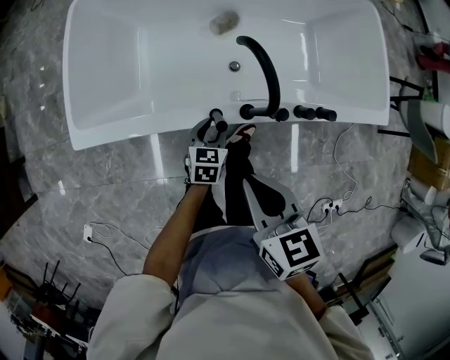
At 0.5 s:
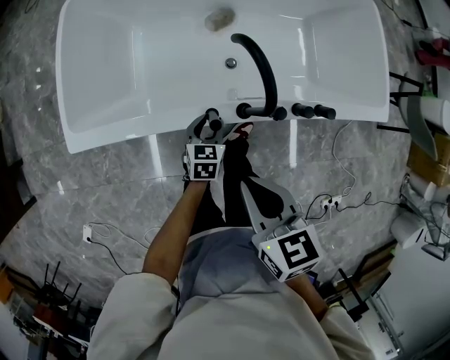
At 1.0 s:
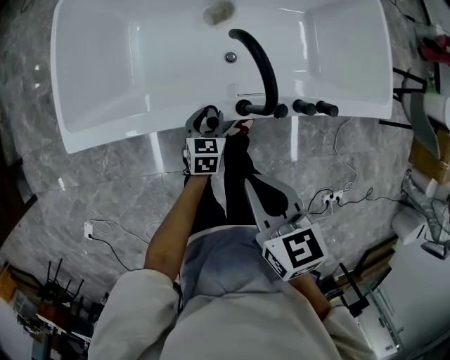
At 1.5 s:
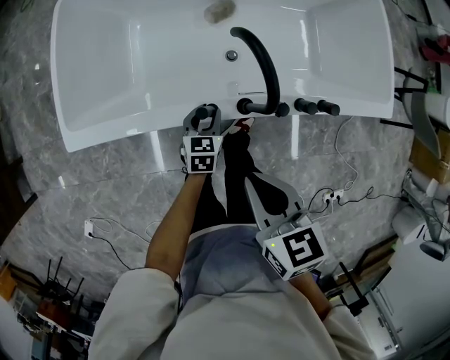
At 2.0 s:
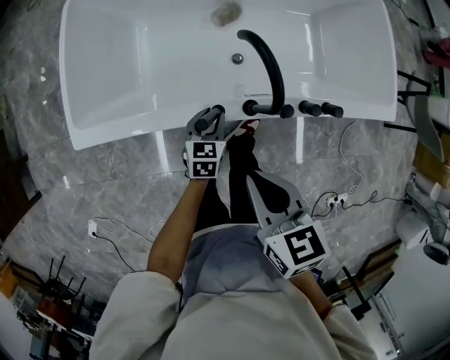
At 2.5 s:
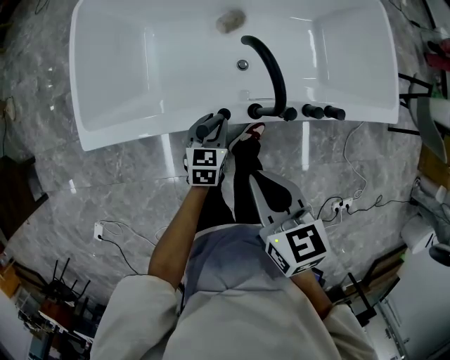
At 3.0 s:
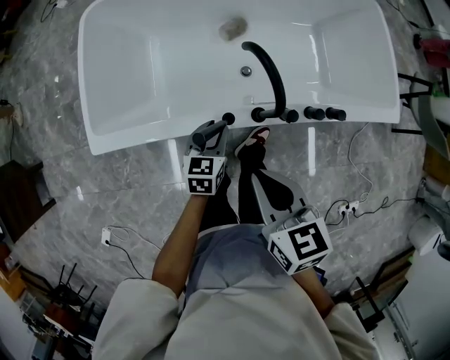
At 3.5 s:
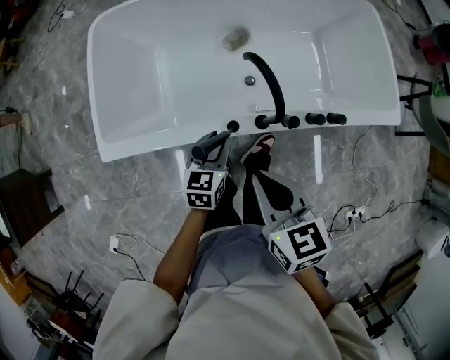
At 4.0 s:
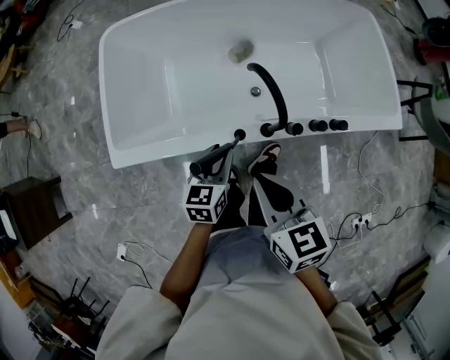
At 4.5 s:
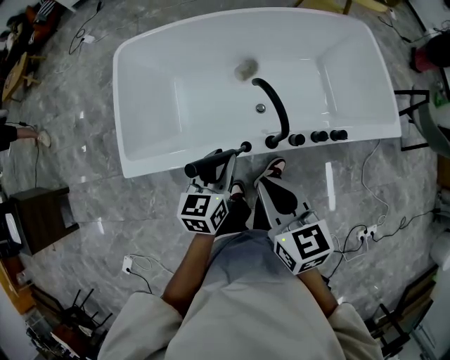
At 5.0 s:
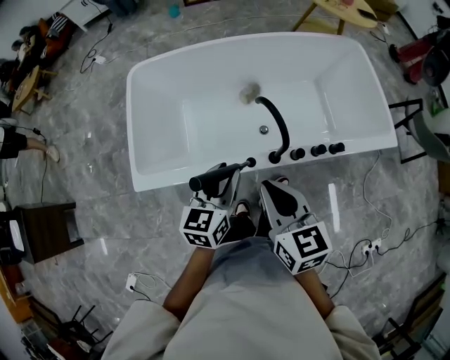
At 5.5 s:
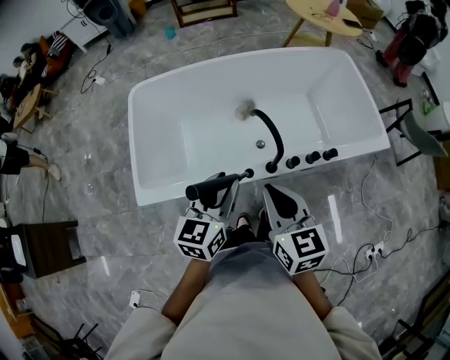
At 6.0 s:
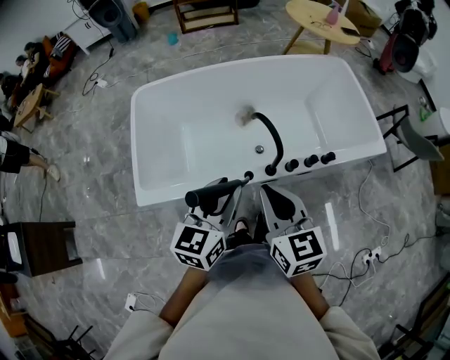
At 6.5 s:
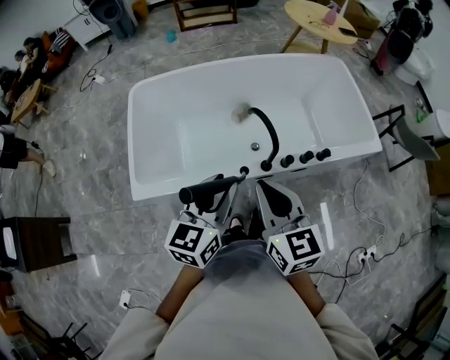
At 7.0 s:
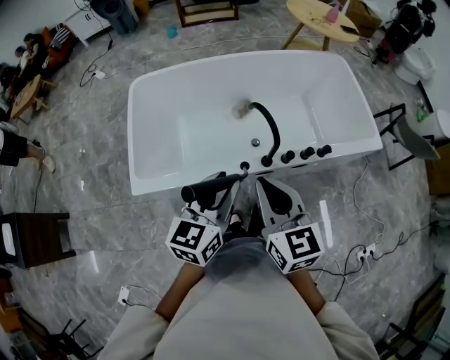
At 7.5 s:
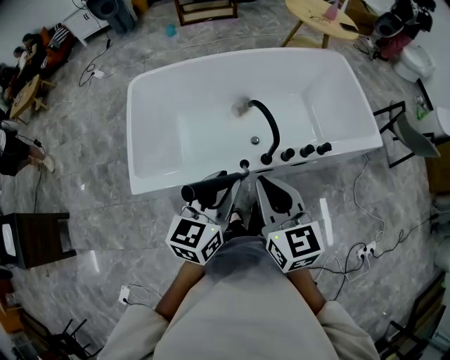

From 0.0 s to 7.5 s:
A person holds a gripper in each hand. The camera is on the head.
From 0.0 s to 2.0 s: The grippers move only a little.
From 2.0 s to 4.0 s: The right gripper is displaced upward by some 5 cm. The left gripper goes some 15 cm upward.
From 4.0 s to 5.5 s: The right gripper travels upward by some 10 cm. The left gripper is displaced upward by approximately 20 cm.
From 5.5 s to 7.5 s: The left gripper is displaced backward by about 5 cm; the right gripper shifts by some 5 cm.

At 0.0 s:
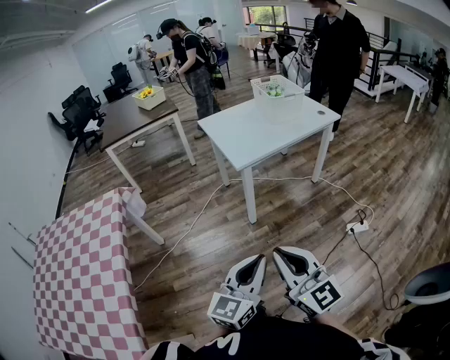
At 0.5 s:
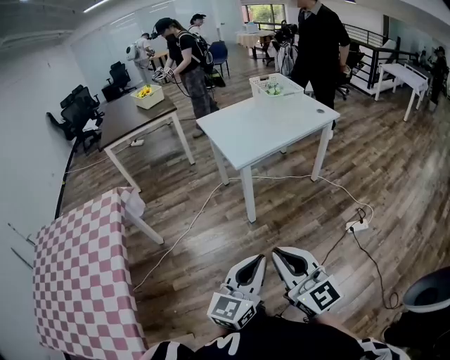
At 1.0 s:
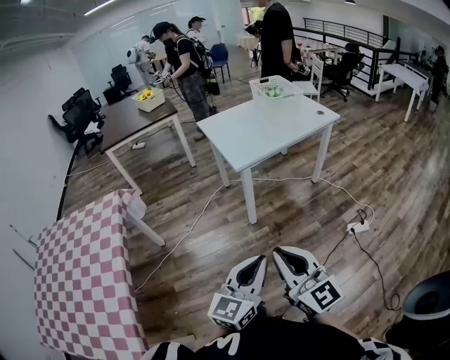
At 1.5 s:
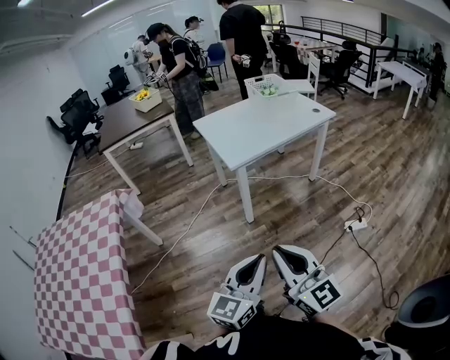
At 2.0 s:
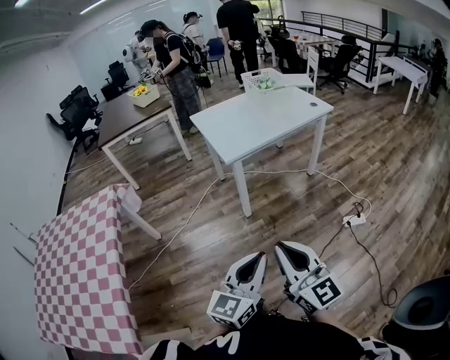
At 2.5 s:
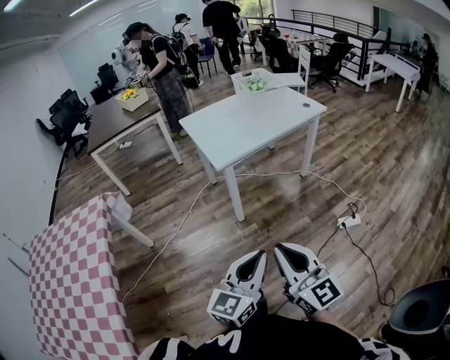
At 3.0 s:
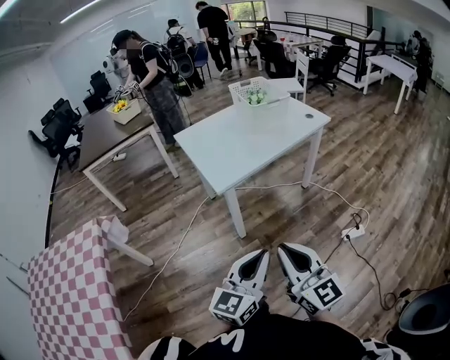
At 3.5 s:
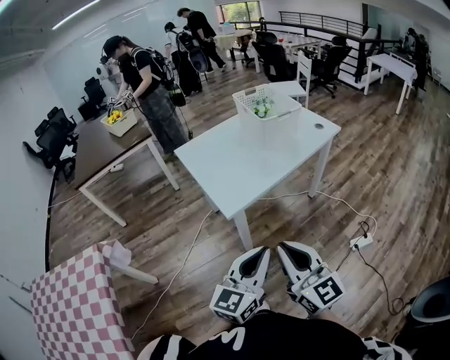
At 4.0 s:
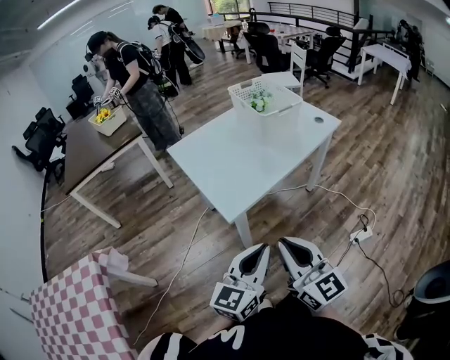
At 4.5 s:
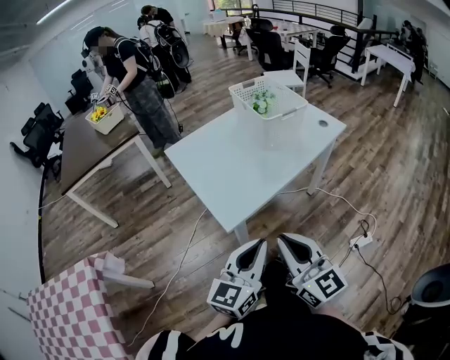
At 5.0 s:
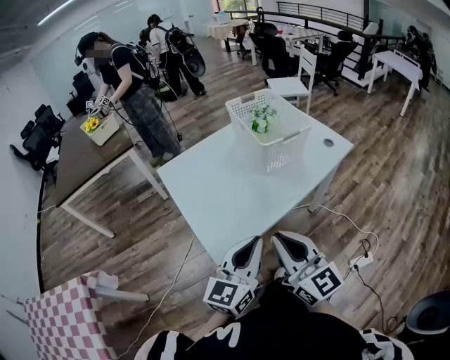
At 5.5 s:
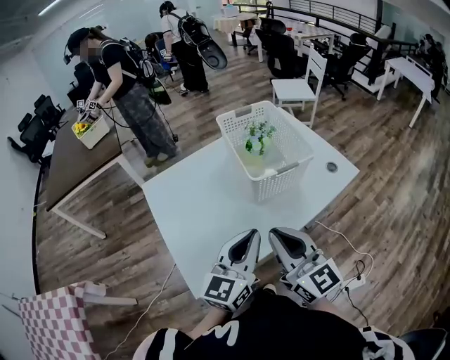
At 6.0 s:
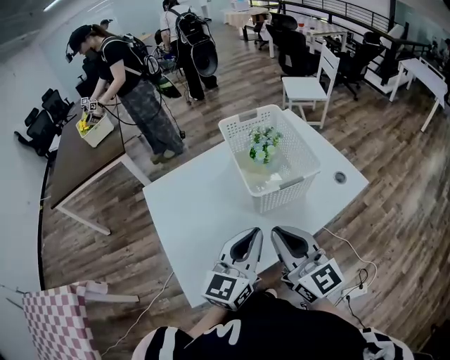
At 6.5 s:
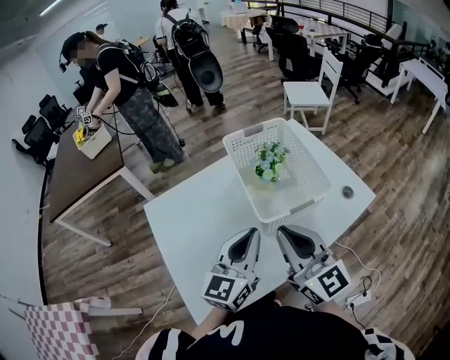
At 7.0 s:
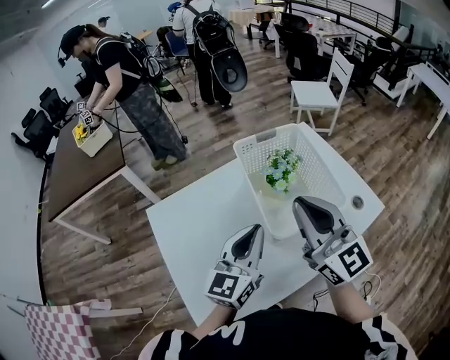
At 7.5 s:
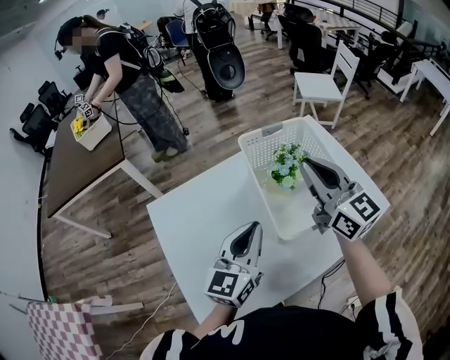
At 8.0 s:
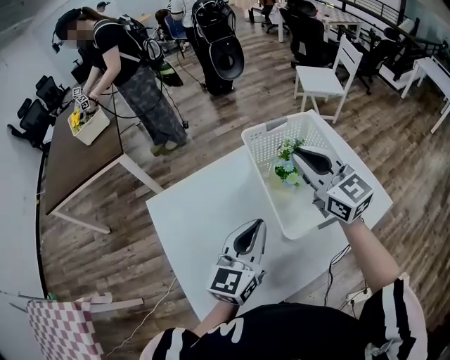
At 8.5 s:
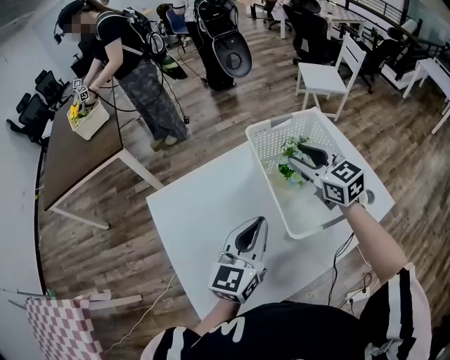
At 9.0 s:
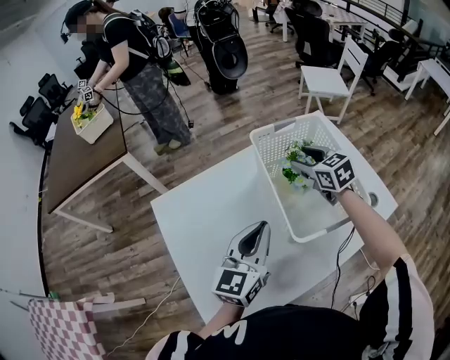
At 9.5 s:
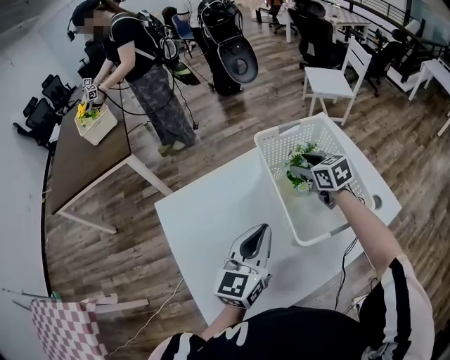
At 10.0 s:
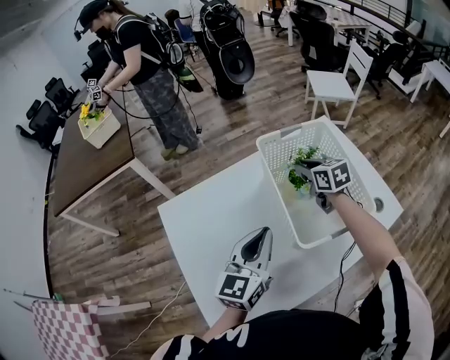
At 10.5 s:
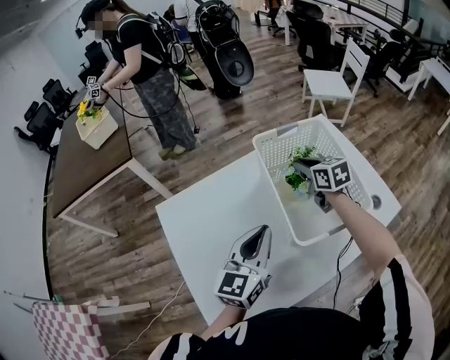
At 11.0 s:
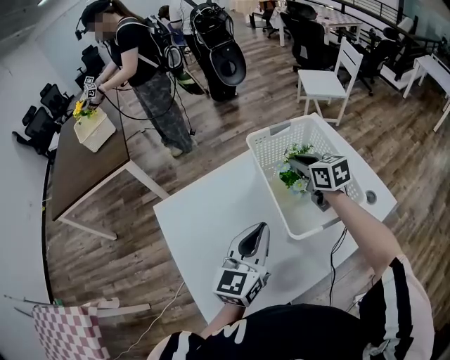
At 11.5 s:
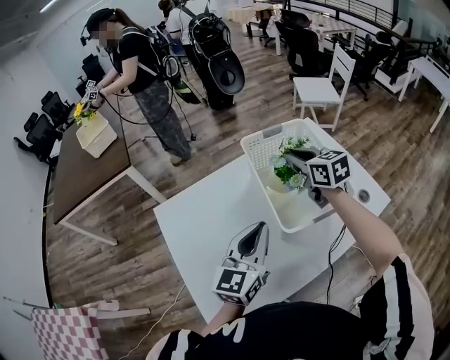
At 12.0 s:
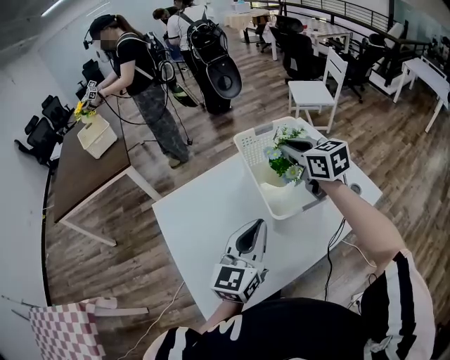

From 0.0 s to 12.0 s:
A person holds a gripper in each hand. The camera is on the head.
From 0.0 s to 2.0 s: Both grippers move to the right, roughly 5 cm.
From 2.0 s to 4.0 s: Both grippers move forward, roughly 35 cm.
From 4.0 s to 6.0 s: The two grippers travel together, forward, about 40 cm.
From 6.0 s to 8.0 s: The left gripper heads forward, covering some 15 cm; the right gripper travels forward by approximately 30 cm.
From 8.0 s to 10.0 s: The right gripper is displaced downward and forward by some 20 cm, tilts its fingers approximately 30 degrees downward, and opens, then closes again.
From 10.0 s to 12.0 s: The right gripper travels upward and backward by about 20 cm. Meanwhile the left gripper is displaced backward by some 5 cm.

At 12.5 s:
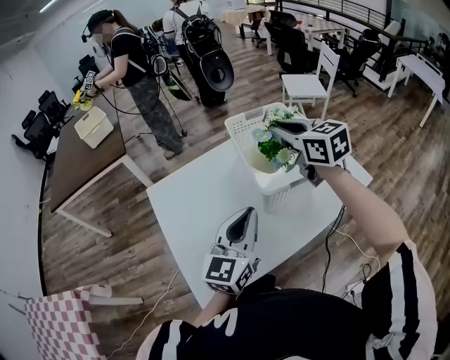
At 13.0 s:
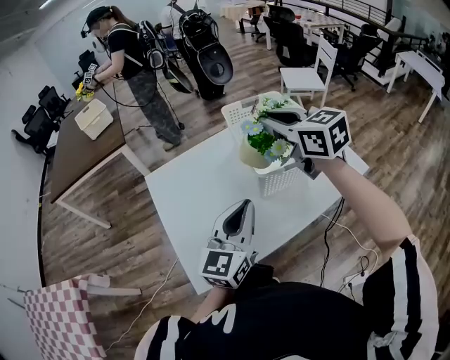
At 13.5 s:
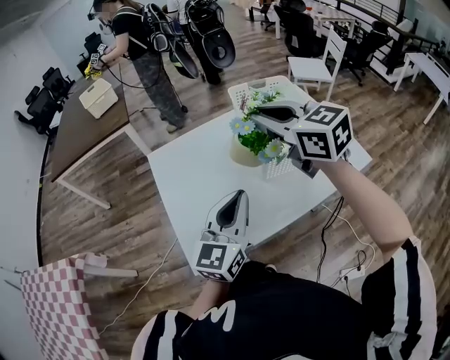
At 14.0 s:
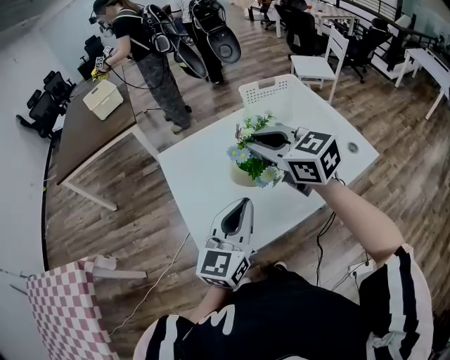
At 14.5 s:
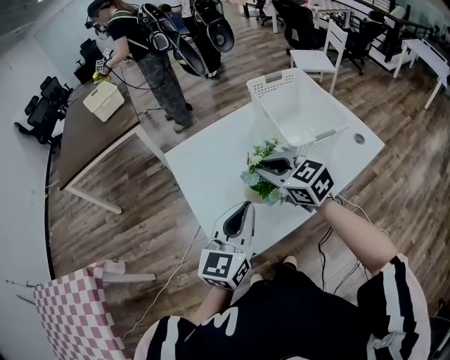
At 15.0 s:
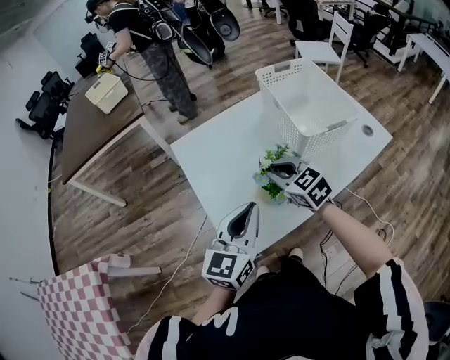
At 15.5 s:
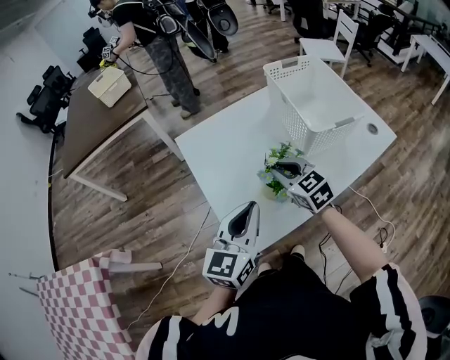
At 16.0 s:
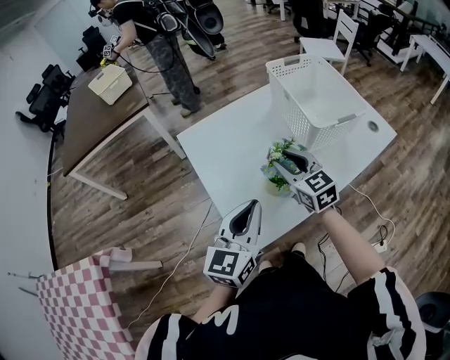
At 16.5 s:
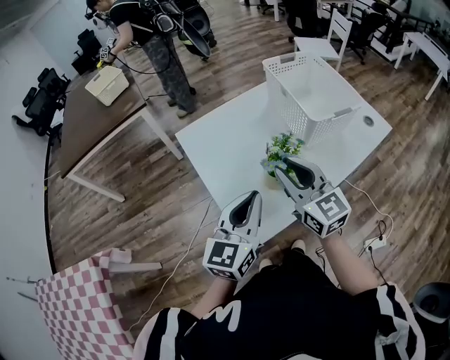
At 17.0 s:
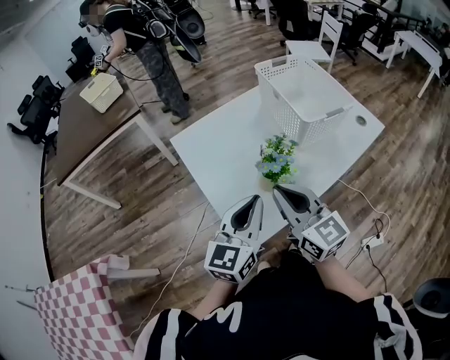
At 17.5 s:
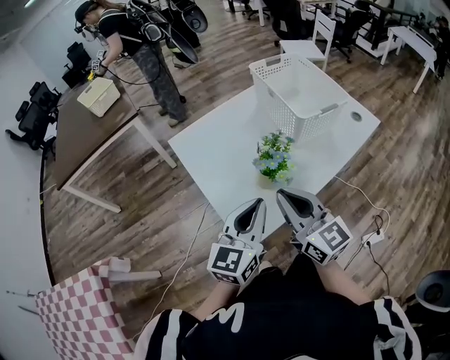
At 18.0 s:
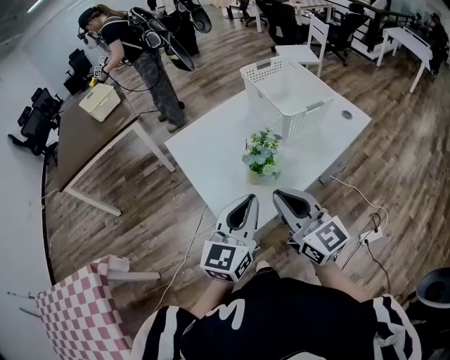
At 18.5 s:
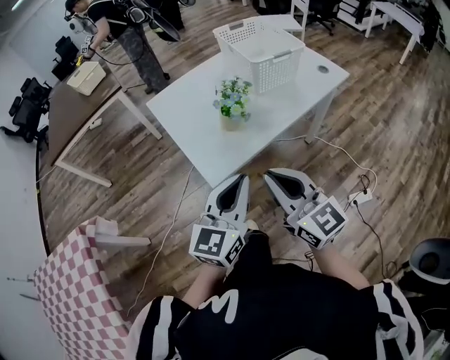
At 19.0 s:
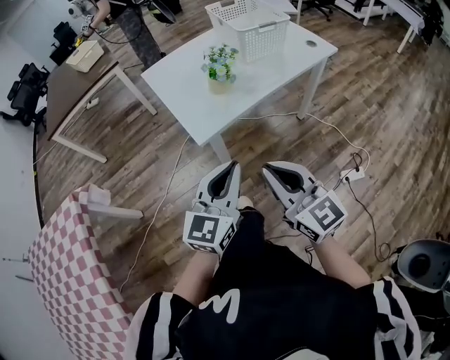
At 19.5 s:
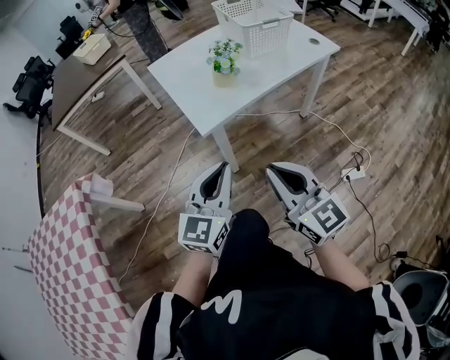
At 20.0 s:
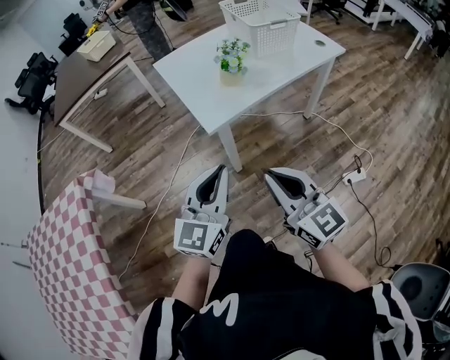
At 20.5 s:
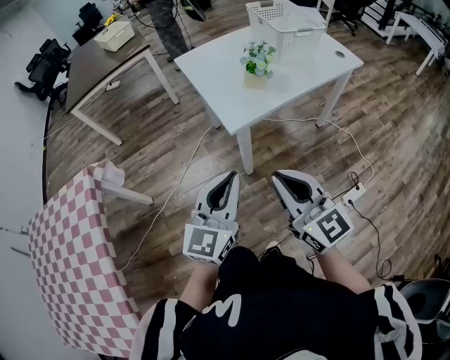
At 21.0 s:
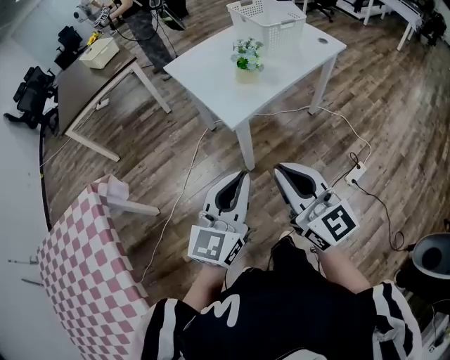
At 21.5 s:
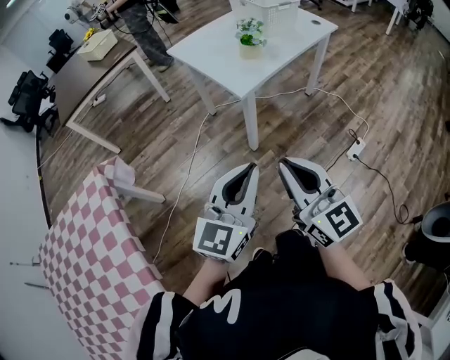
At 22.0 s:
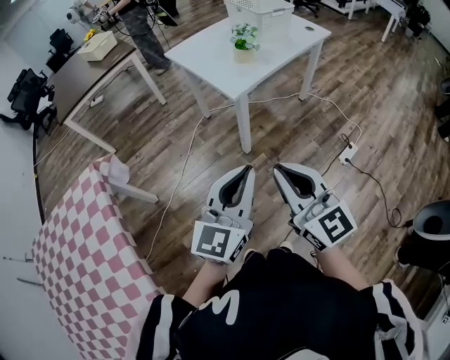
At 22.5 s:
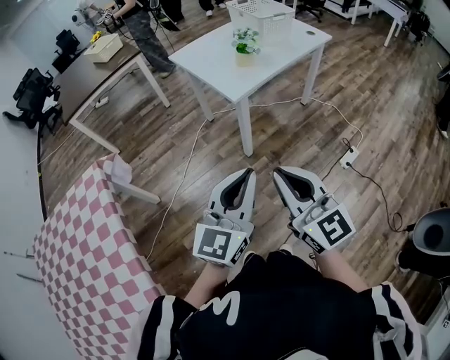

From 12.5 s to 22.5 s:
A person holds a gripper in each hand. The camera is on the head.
From 12.5 s to 14.5 s: The left gripper travels to the left and backward by approximately 15 cm. The right gripper moves to the left, backward and downward, some 25 cm.
From 14.5 s to 16.5 s: The left gripper moves to the left, some 5 cm. The right gripper goes approximately 5 cm backward, travels downward and back again, roughly 10 cm each way, and swivels approximately 30 degrees.
From 16.5 s to 18.5 s: The grippers both shift backward by some 25 cm. The right gripper closes.
From 18.5 s to 20.5 s: The two grippers go about 20 cm backward and to the left.
From 20.5 s to 22.5 s: The right gripper shifts roughly 20 cm backward and to the left; the left gripper moves backward, roughly 20 cm.
